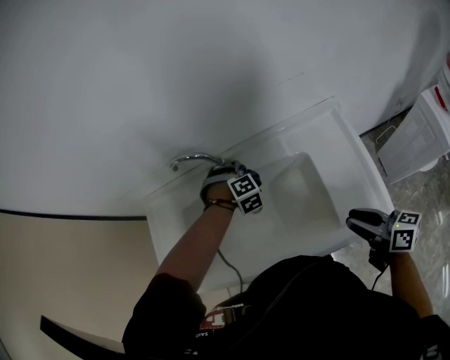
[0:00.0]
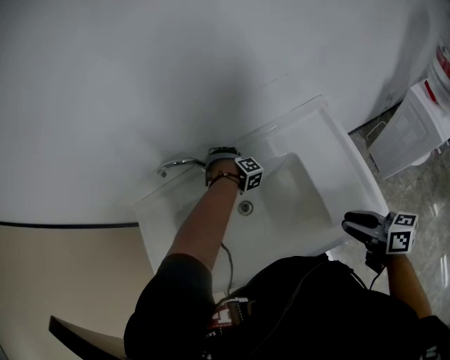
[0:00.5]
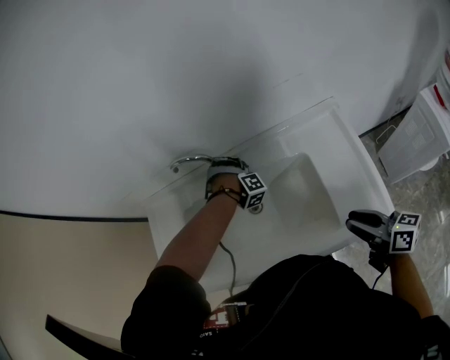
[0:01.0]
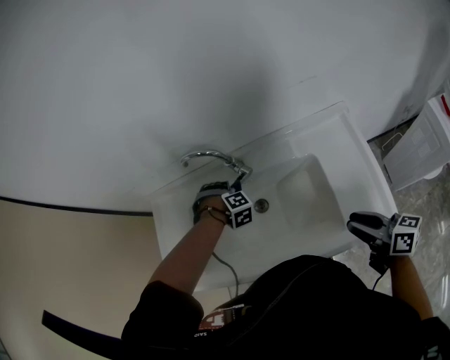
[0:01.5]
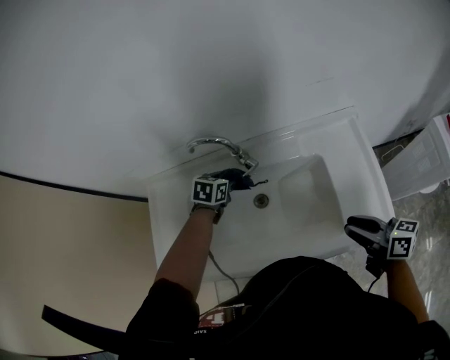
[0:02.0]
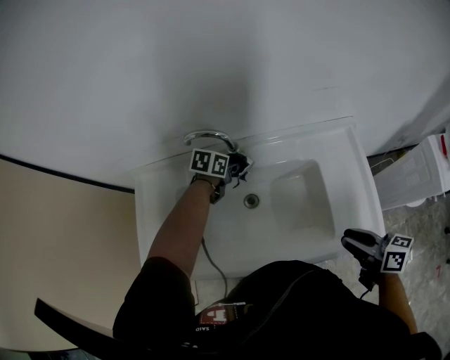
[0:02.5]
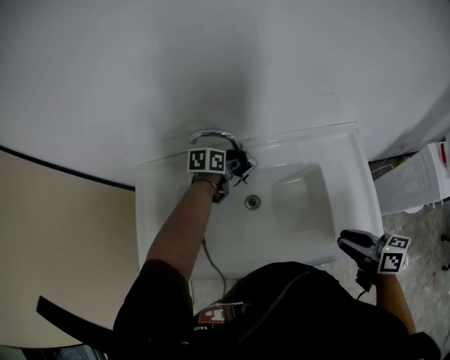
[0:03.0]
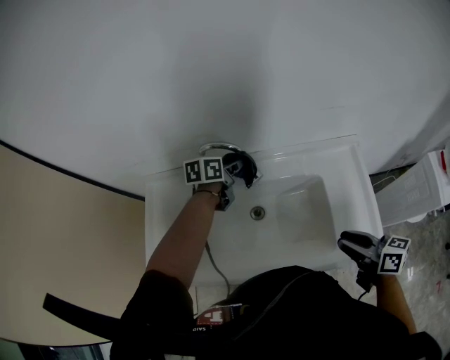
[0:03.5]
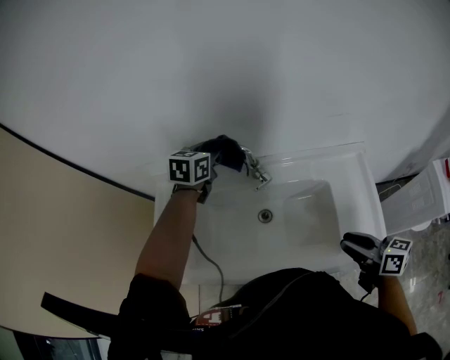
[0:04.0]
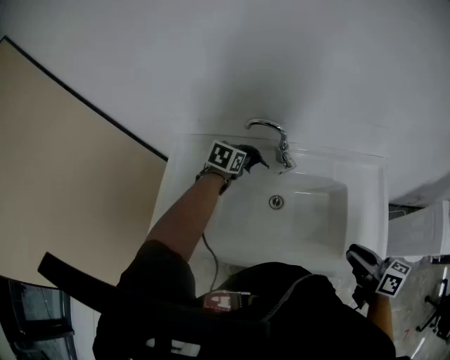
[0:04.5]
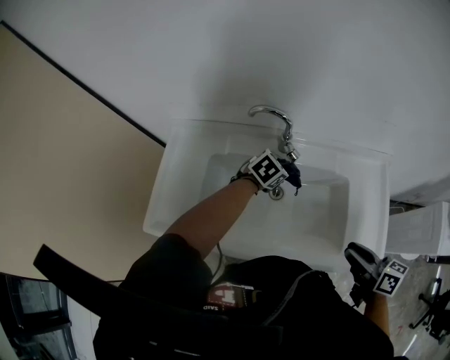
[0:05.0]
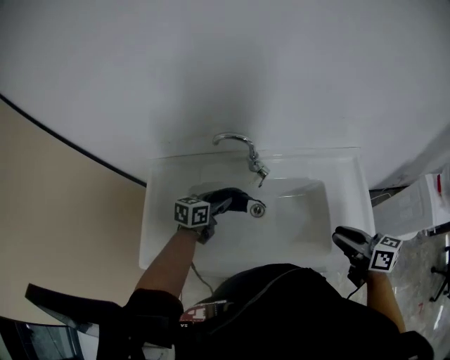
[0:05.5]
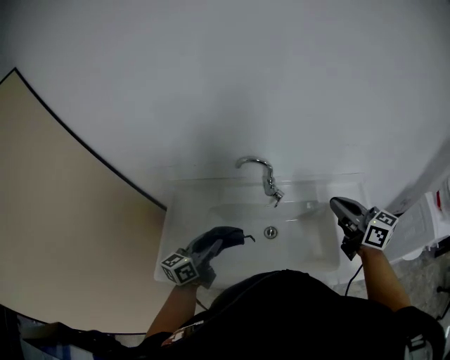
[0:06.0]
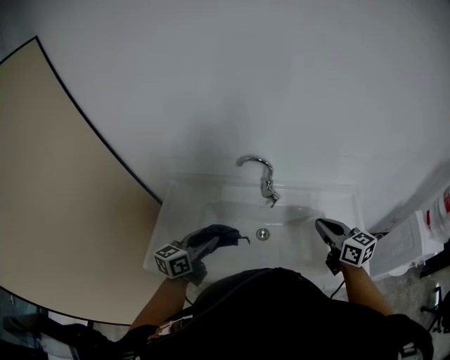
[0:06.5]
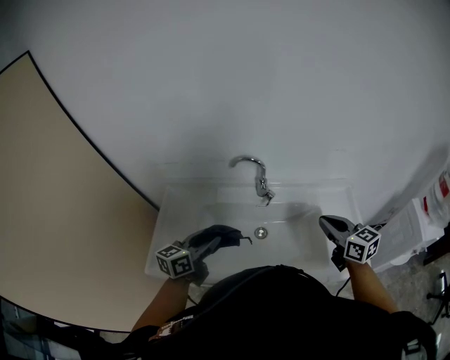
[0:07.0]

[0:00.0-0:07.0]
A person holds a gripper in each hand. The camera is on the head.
0:00.0 to 0:02.0: The left gripper changes place by some 10 cm, and rotates around the line of its fingers by approximately 70 degrees, counterclockwise from behind.
0:02.0 to 0:03.5: The left gripper heads upward, covering about 10 cm, and rotates approximately 30 degrees.
0:03.5 to 0:05.0: The left gripper is displaced backward and downward by roughly 10 cm, and rotates roughly 40 degrees.
0:05.0 to 0:07.0: The right gripper travels forward and upward by approximately 10 cm, turns by about 40 degrees, and closes. The left gripper moves to the left, backward and upward, approximately 30 cm, and points its fingers some 40 degrees further upward.

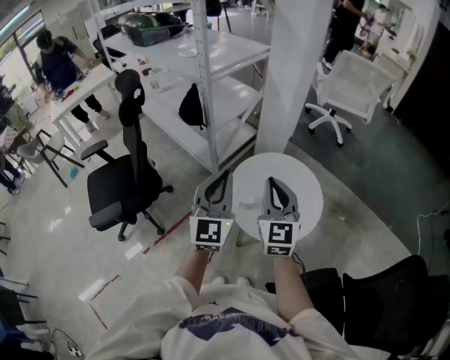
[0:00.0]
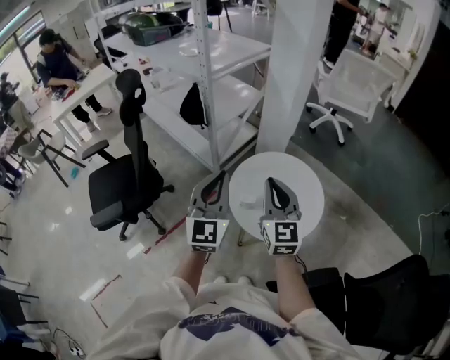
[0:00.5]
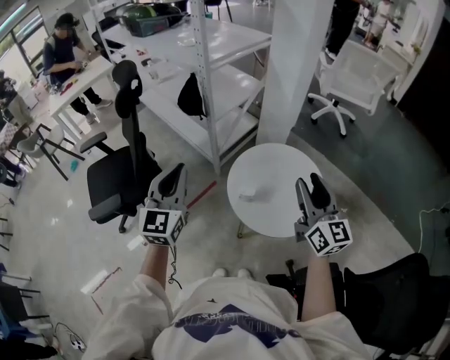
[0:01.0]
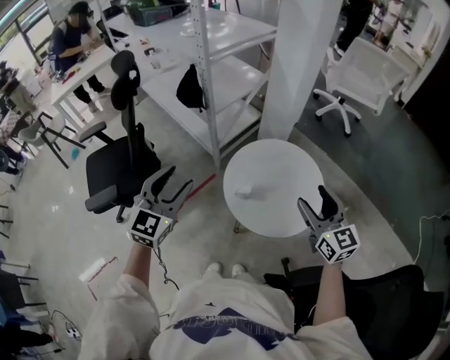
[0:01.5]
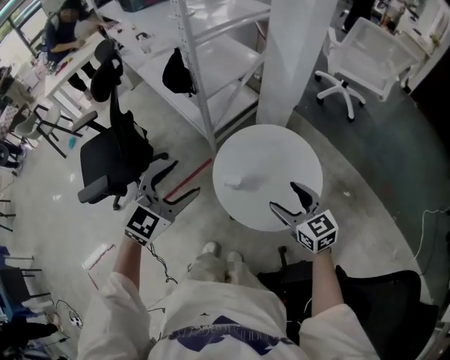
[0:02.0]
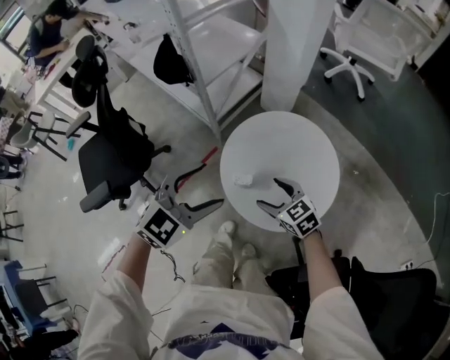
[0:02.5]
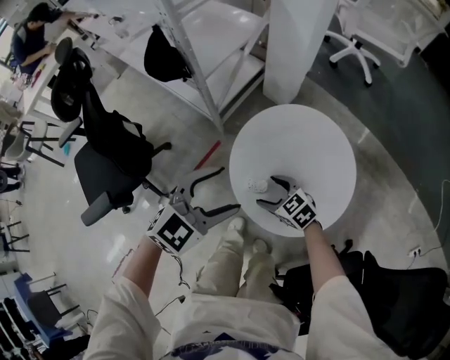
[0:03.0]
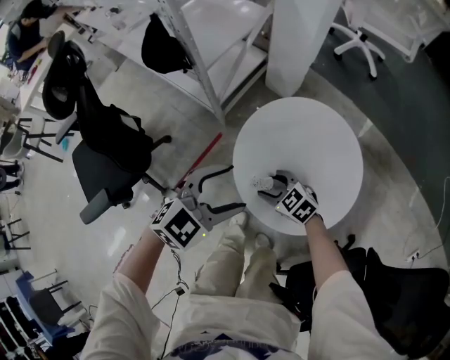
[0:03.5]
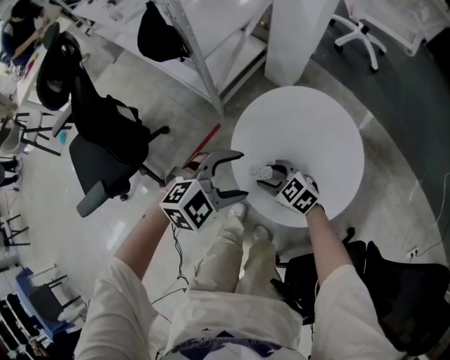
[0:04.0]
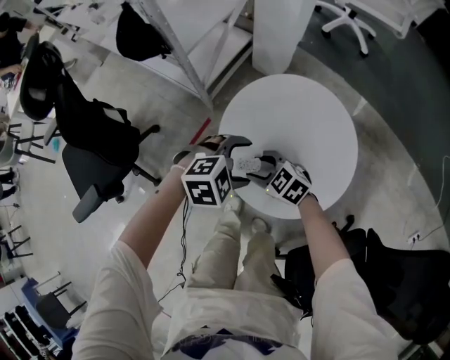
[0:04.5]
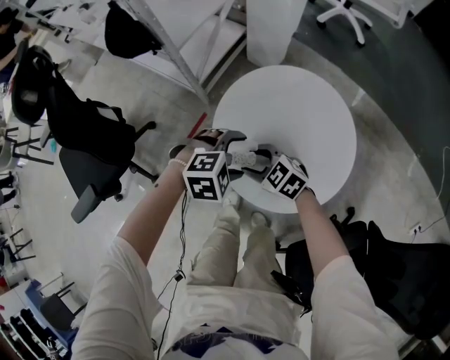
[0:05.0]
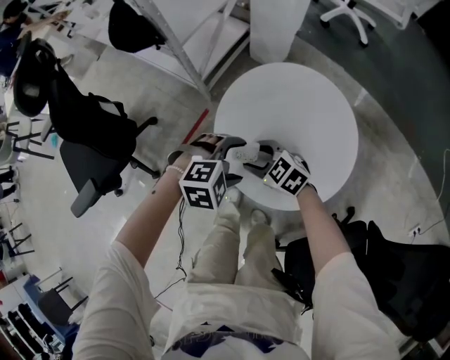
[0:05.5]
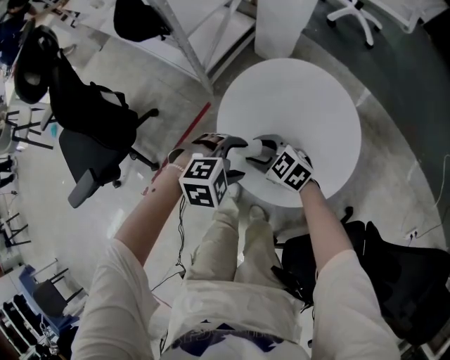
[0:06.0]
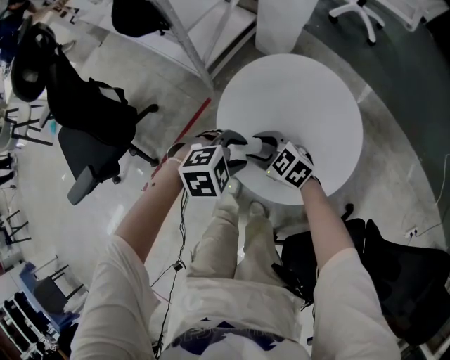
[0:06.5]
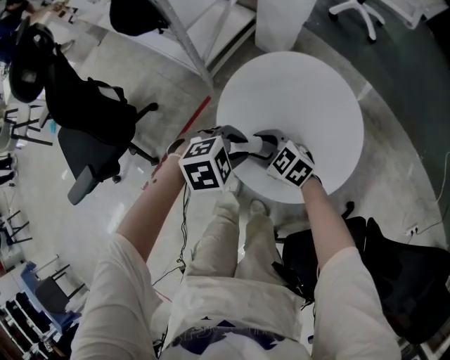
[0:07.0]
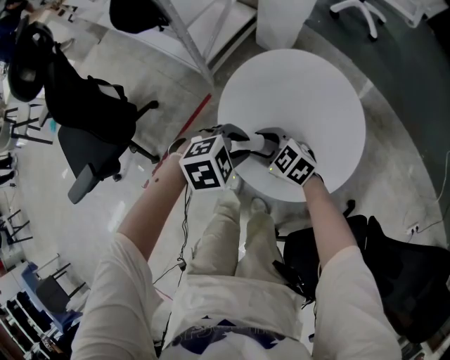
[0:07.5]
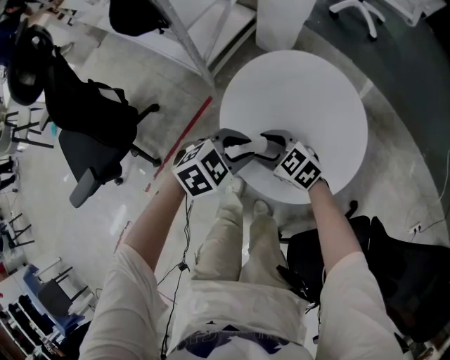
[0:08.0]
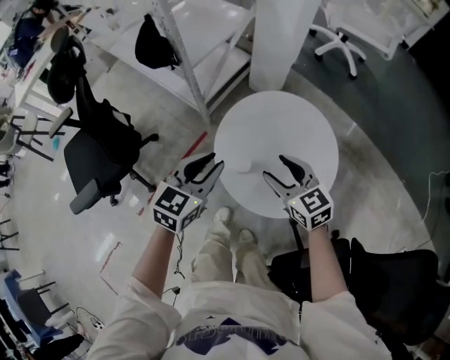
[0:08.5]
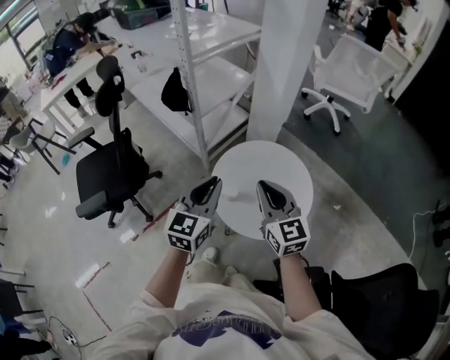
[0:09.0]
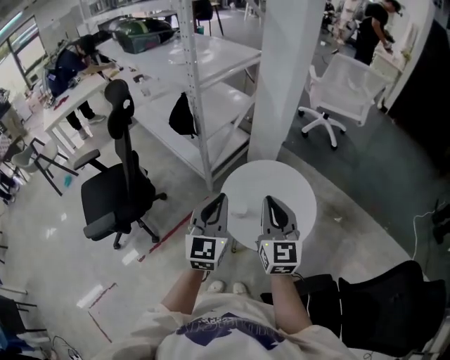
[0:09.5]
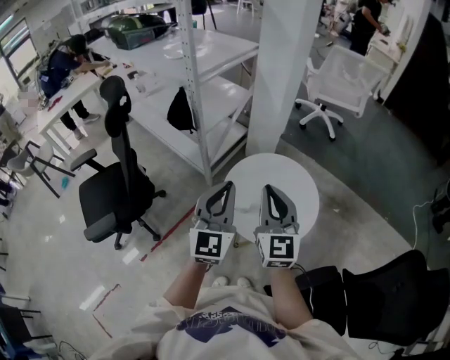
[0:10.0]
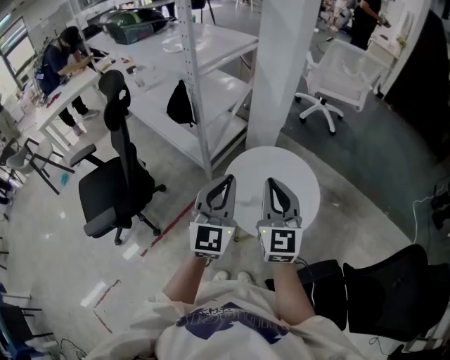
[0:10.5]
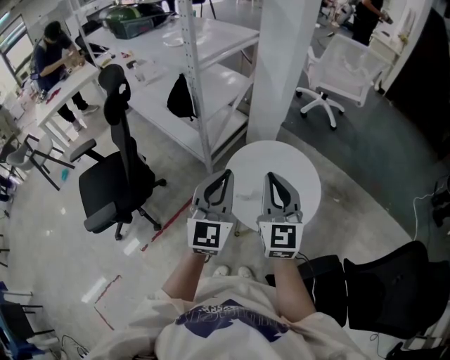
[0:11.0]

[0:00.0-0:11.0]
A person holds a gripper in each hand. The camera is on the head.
0:00.0 to 0:02.0: The left gripper is displaced downward by roughly 5 cm, travels to the left and back again, some 10 cm each way, rotates roughly 30 degrees, and opens. Meanwhile the right gripper heads downward and to the right, covering about 20 cm, swivels some 40 degrees, and opens up.
0:02.0 to 0:03.5: The left gripper goes approximately 15 cm downward and forward, and swivels approximately 30 degrees; the right gripper goes some 30 cm downward and to the left, and changes its angle by some 30 degrees.
0:03.5 to 0:05.5: The left gripper moves downward, roughly 15 cm, and changes its angle by about 40 degrees.
0:05.5 to 0:07.5: The left gripper closes.
0:07.5 to 0:09.0: Both grippers move upward, some 30 cm. The left gripper angles its fingers upward, by some 50 degrees; the right gripper tilts its fingers some 40 degrees upward, and closes.
0:09.0 to 0:11.0: The left gripper moves upward, roughly 5 cm; the right gripper travels upward and to the left by some 10 cm, and turns by approximately 20 degrees.

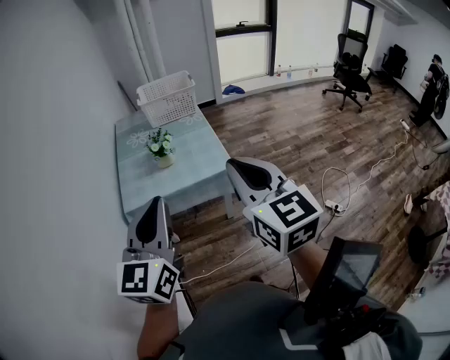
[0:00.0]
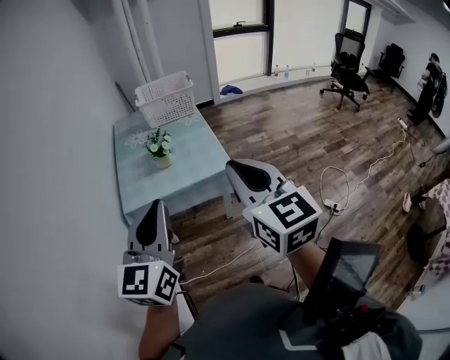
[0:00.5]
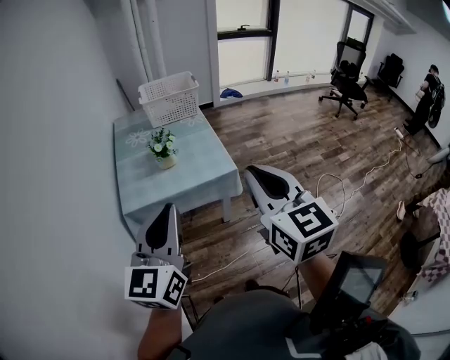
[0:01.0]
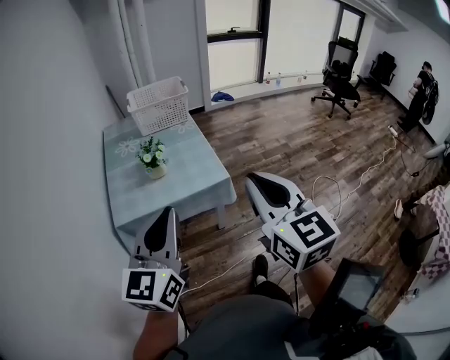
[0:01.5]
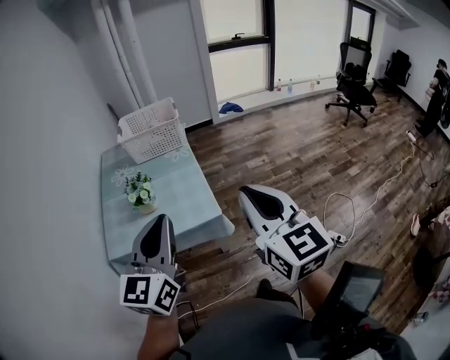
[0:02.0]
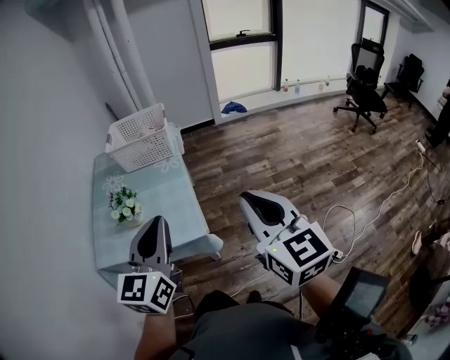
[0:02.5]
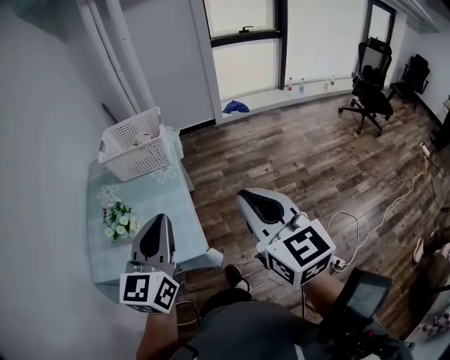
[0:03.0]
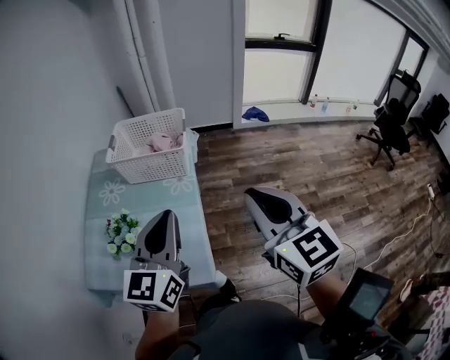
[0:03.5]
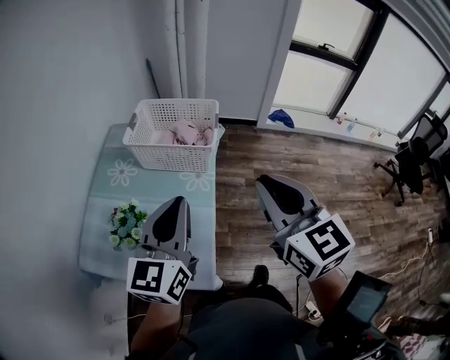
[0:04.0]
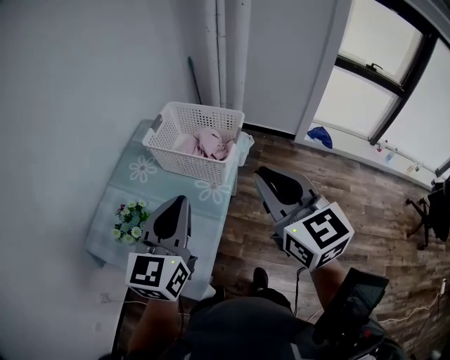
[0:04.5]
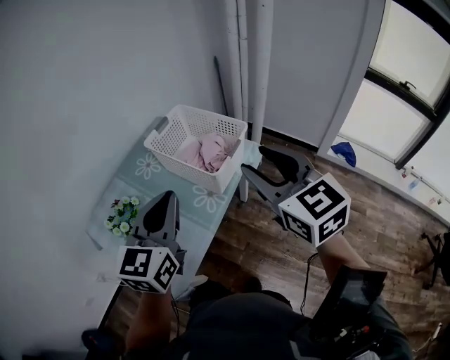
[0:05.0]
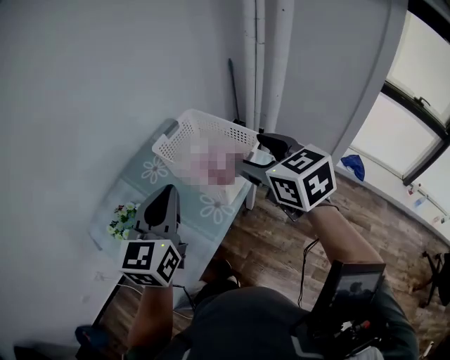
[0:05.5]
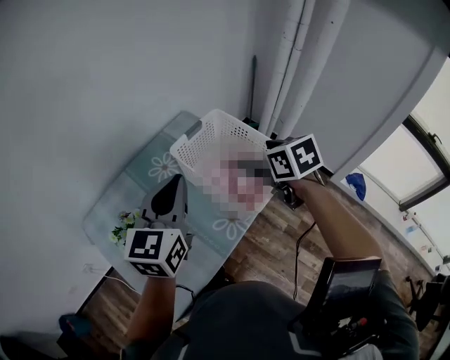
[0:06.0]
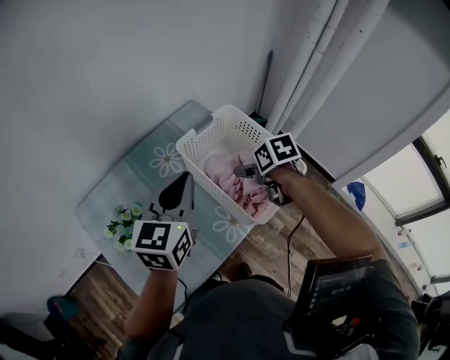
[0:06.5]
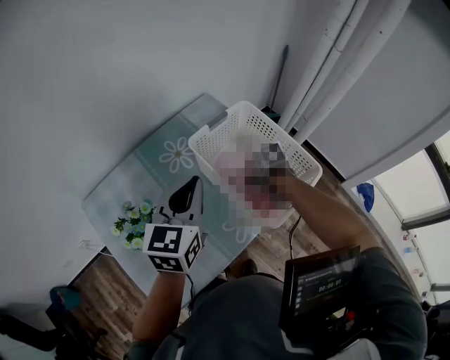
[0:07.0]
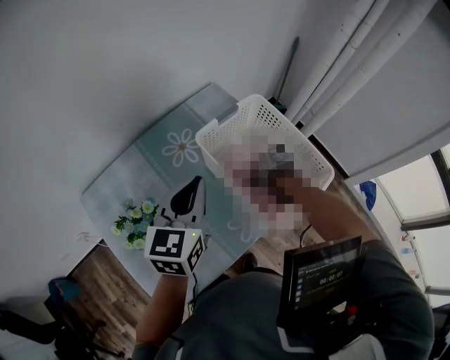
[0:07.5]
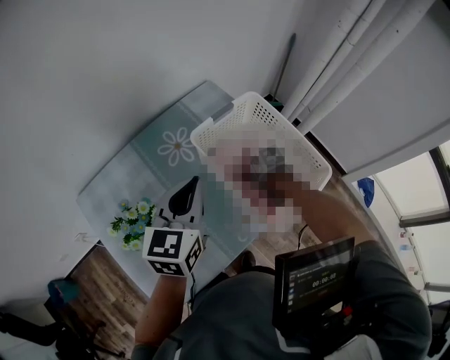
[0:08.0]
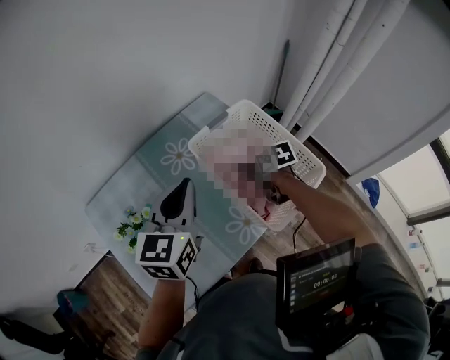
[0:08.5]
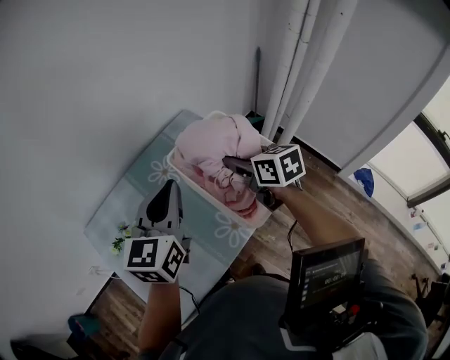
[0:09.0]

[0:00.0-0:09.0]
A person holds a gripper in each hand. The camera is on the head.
0:00.0 to 0:02.0: Both grippers move forward and to the right, approximately 20 cm.
0:02.0 to 0:04.5: The two grippers travel together, roughly 50 cm. The right gripper swivels some 40 degrees, while the left gripper changes its angle by some 30 degrees.
0:04.5 to 0:07.0: The left gripper moves some 25 cm, and turns by approximately 30 degrees, while the right gripper heads downward, covering some 40 cm, tilts its fingers approximately 70 degrees downward, and opens up.
0:07.0 to 0:09.0: The left gripper moves upward, roughly 5 cm; the right gripper is displaced upward by some 20 cm, tilts its fingers roughly 50 degrees upward, and closes.
